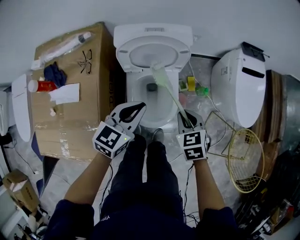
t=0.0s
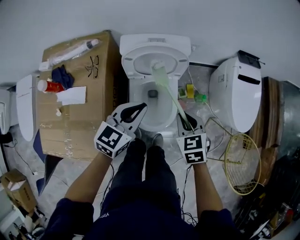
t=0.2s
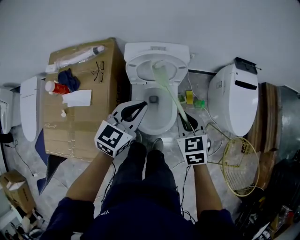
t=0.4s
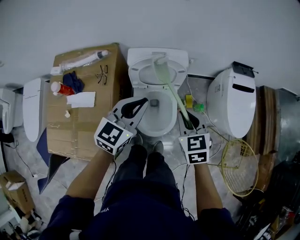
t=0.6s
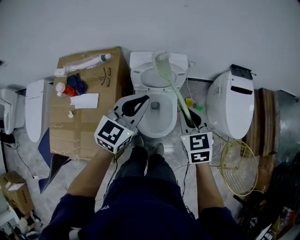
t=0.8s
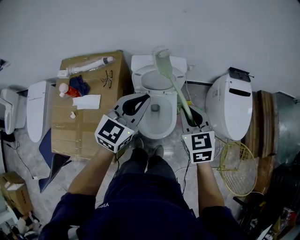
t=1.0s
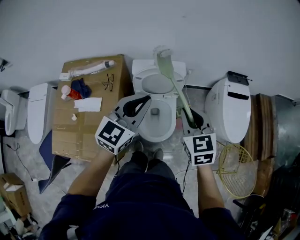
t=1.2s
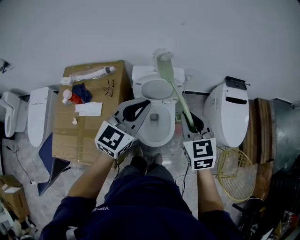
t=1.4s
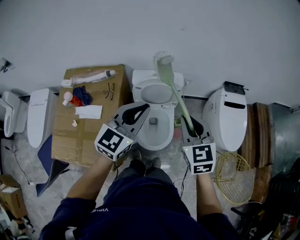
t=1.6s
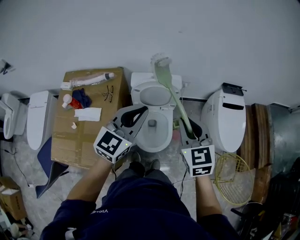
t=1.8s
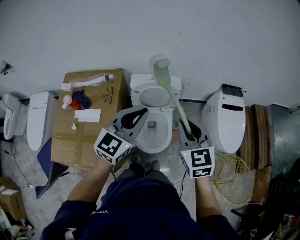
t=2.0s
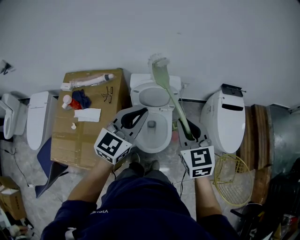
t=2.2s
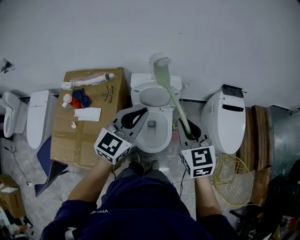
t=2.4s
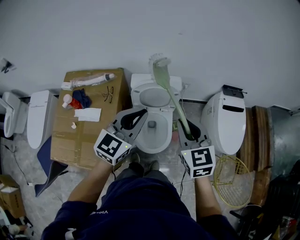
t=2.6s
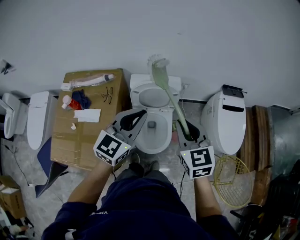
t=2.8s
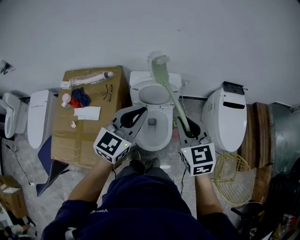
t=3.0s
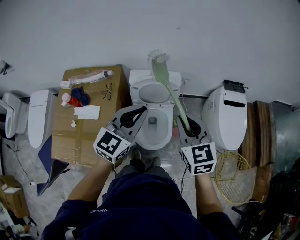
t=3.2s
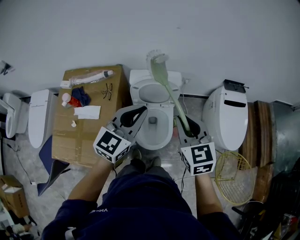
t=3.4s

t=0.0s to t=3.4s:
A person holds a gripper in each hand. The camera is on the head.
t=0.0s to t=1.6s: Both grippers travel together upward, some 30 cm. The right gripper turns by about 30 degrees. The left gripper rotates about 20 degrees.
t=1.6s to t=3.4s: There are only small adjustments of the grippers.

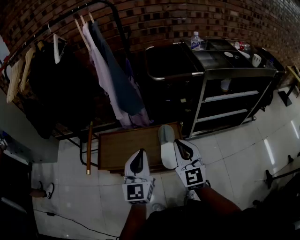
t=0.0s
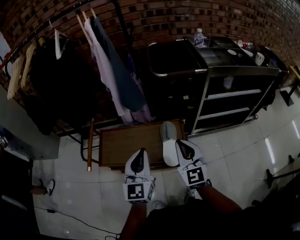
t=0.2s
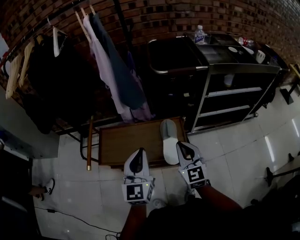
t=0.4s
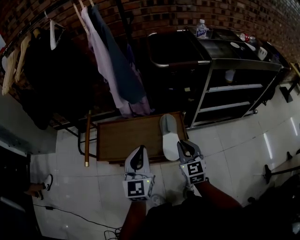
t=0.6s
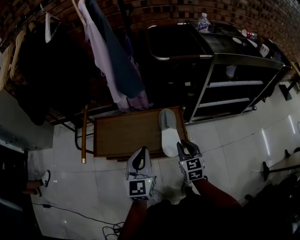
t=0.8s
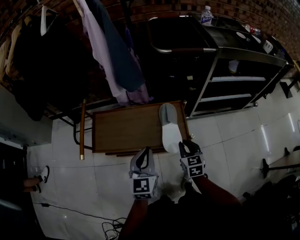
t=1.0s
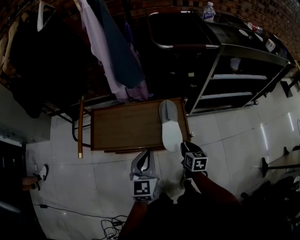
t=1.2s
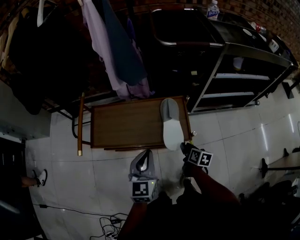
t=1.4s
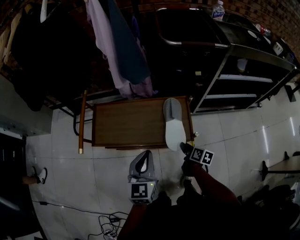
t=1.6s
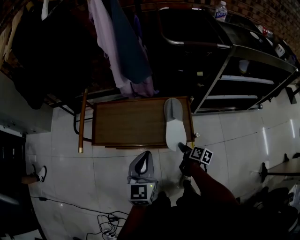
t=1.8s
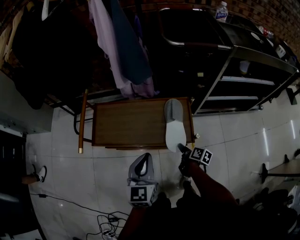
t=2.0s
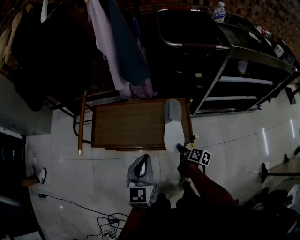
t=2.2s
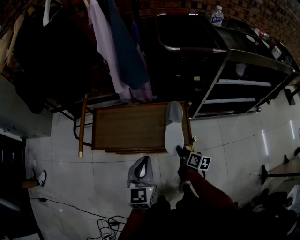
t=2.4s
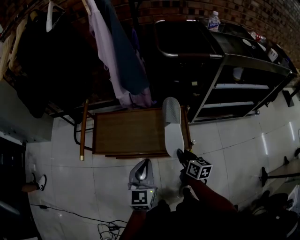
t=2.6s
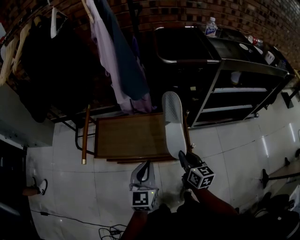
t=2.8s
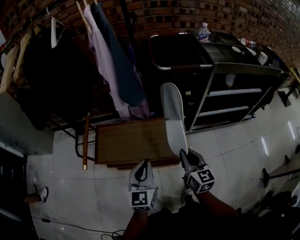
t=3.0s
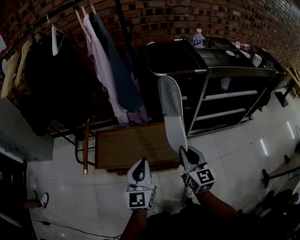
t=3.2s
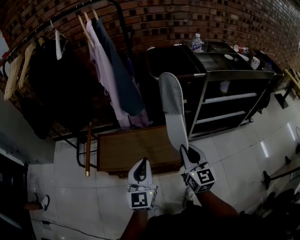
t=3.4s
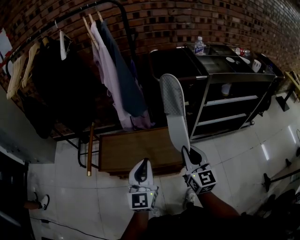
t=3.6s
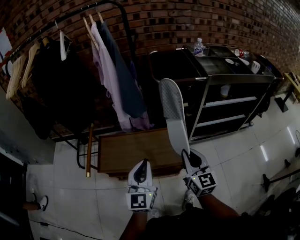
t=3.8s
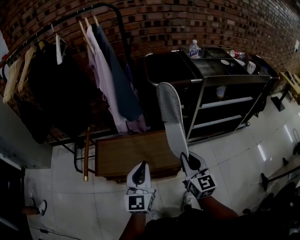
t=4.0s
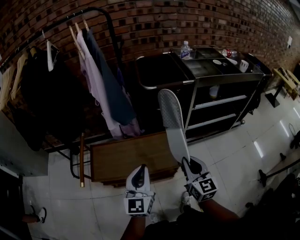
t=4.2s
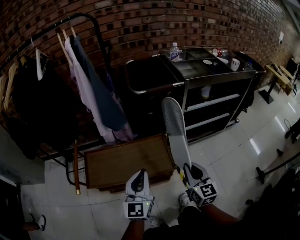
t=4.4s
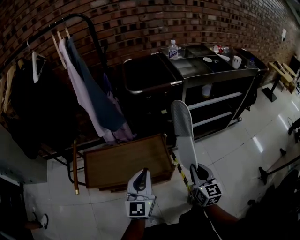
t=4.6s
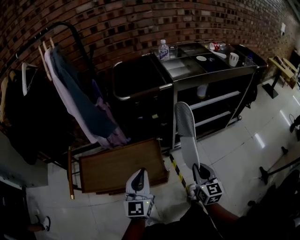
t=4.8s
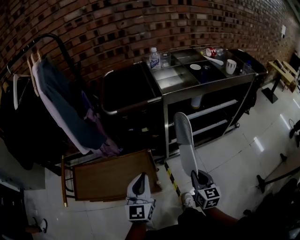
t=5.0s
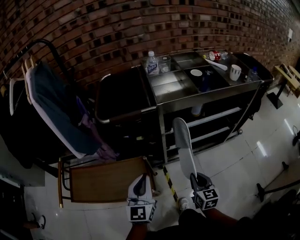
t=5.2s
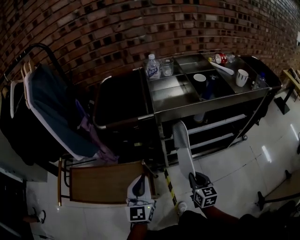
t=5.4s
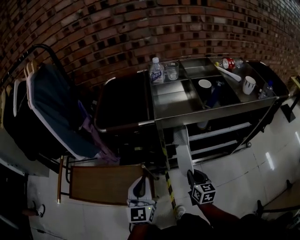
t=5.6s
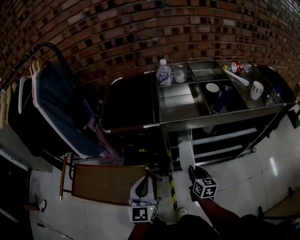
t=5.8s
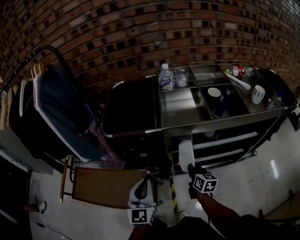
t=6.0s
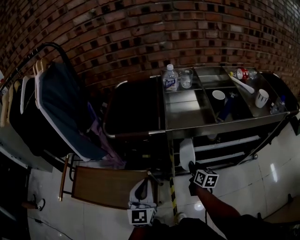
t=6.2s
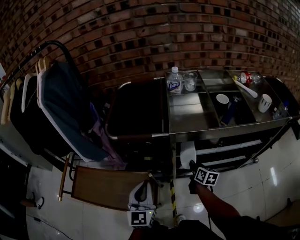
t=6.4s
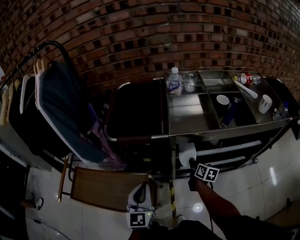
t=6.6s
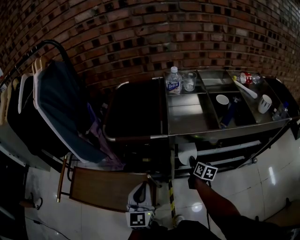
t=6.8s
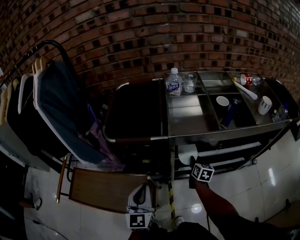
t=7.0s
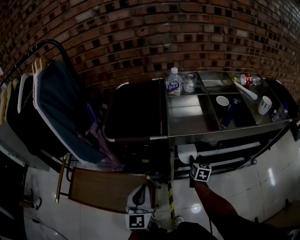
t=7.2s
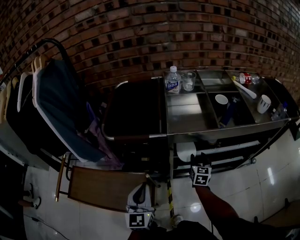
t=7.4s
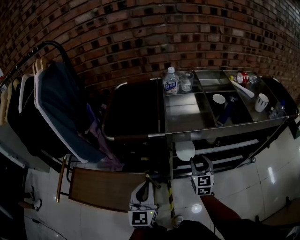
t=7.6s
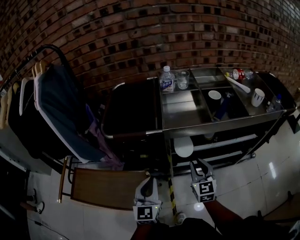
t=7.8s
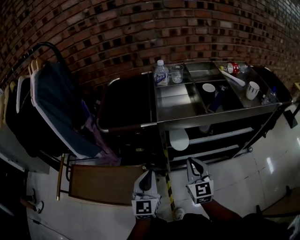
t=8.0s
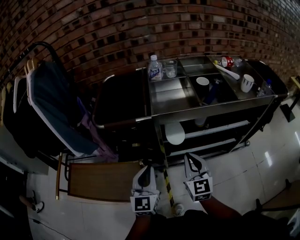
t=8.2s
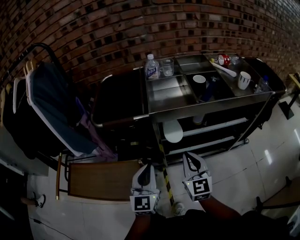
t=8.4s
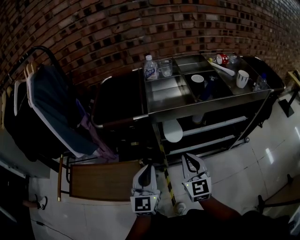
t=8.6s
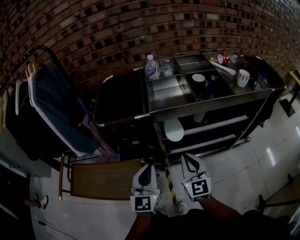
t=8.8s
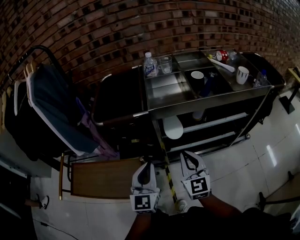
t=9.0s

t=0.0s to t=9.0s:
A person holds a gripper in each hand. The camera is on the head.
t=0.0s to t=1.6s: The right gripper heads downward, covering some 35 cm, twists some 70 degrees clockwise, seen from behind, and opens up. Meanwhile the left gripper moves downward, roughly 15 cm.
t=1.6s to t=3.0s: The right gripper moves upward, some 25 cm, changes its angle by roughly 50 degrees, and closes up.
t=3.0s to t=4.4s: The left gripper shifts about 5 cm upward; the right gripper heads to the right, covering approximately 10 cm.
t=4.4s to t=6.0s: The left gripper is displaced to the right and forward by about 30 cm. The right gripper heads forward and to the right, covering approximately 40 cm, and swivels some 30 degrees.
t=6.0s to t=7.6s: The right gripper is displaced upward by approximately 5 cm, swivels approximately 40 degrees, and opens up.
t=7.6s to t=9.0s: The left gripper shifts roughly 5 cm to the right. Meanwhile the right gripper heads backward and upward, covering about 15 cm, and closes its fingers.

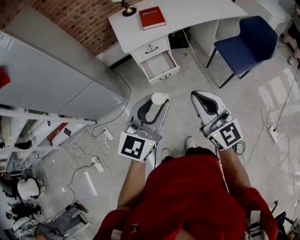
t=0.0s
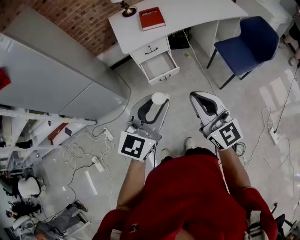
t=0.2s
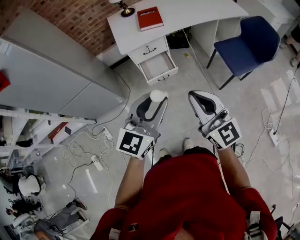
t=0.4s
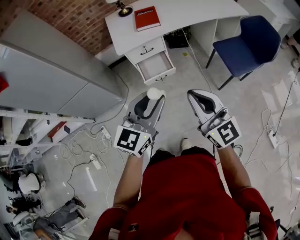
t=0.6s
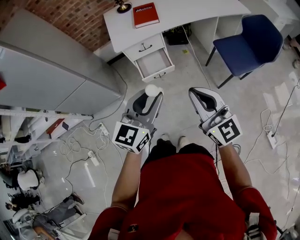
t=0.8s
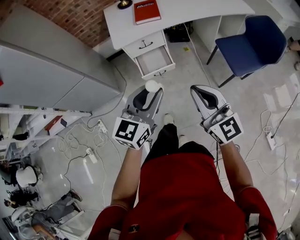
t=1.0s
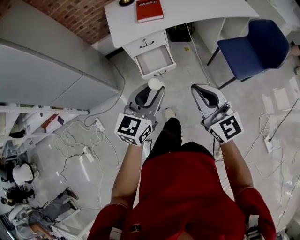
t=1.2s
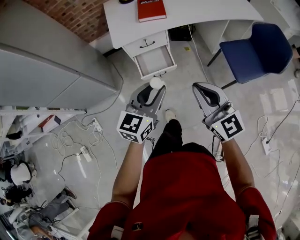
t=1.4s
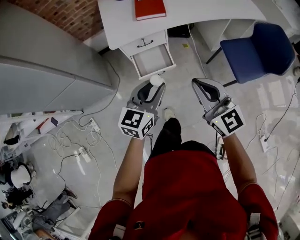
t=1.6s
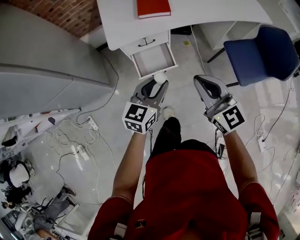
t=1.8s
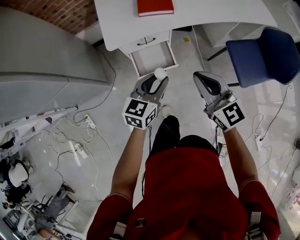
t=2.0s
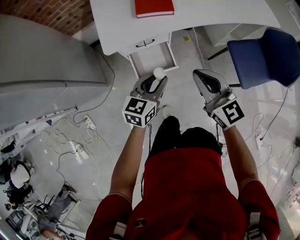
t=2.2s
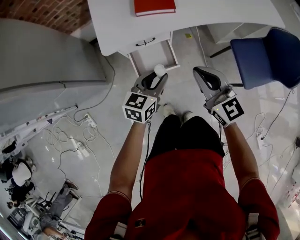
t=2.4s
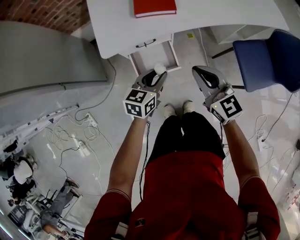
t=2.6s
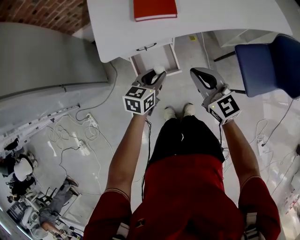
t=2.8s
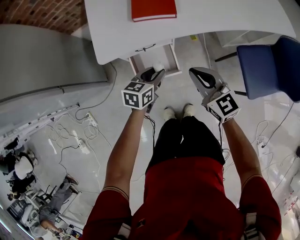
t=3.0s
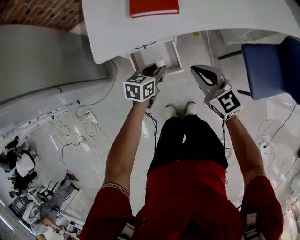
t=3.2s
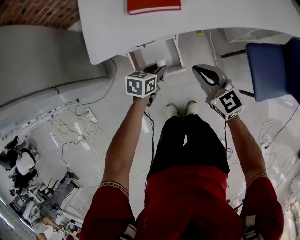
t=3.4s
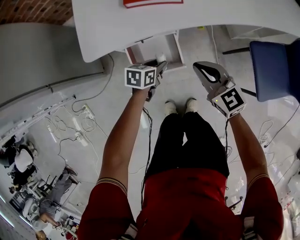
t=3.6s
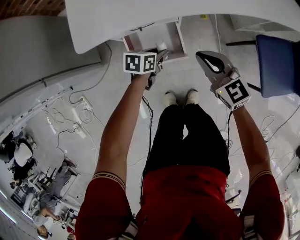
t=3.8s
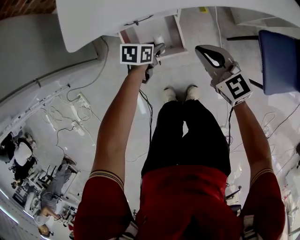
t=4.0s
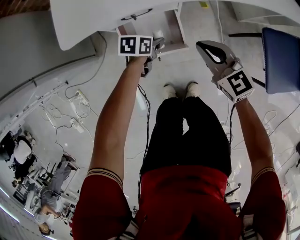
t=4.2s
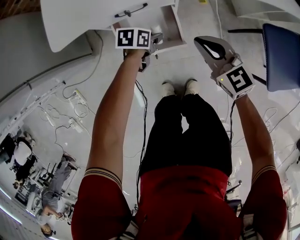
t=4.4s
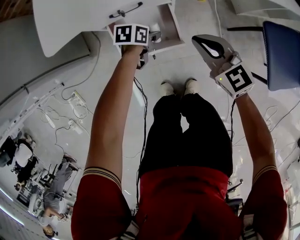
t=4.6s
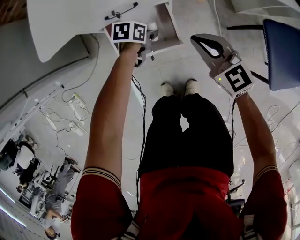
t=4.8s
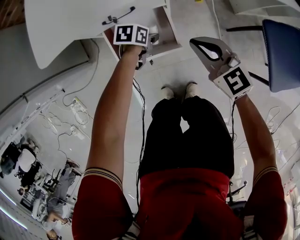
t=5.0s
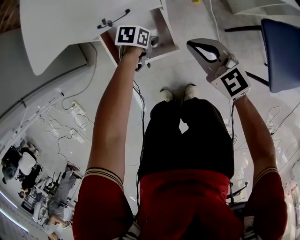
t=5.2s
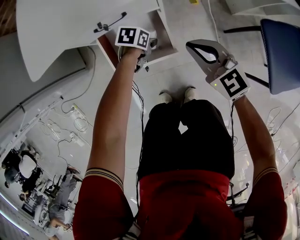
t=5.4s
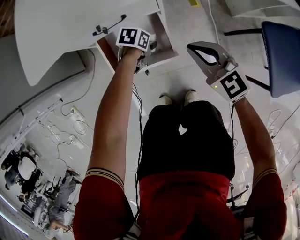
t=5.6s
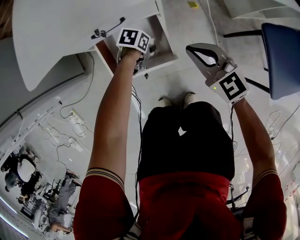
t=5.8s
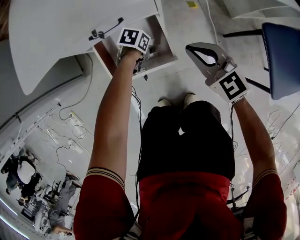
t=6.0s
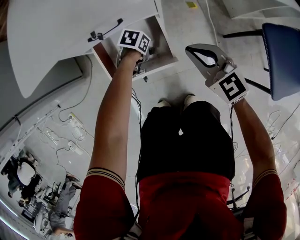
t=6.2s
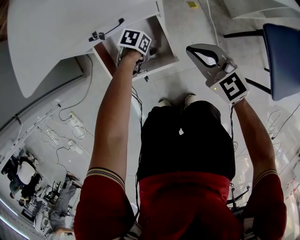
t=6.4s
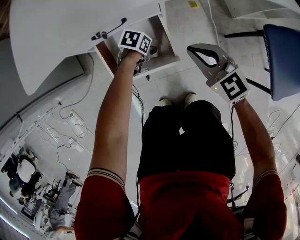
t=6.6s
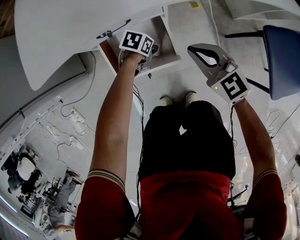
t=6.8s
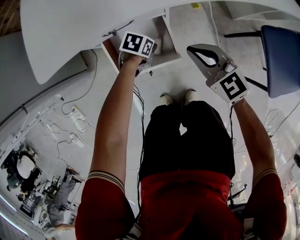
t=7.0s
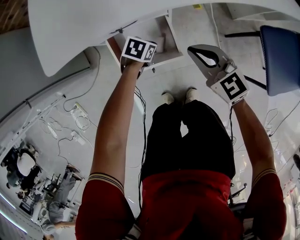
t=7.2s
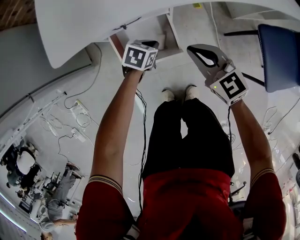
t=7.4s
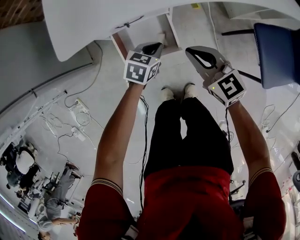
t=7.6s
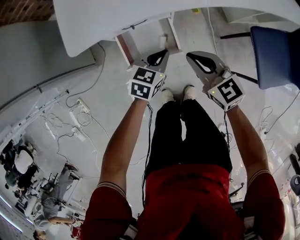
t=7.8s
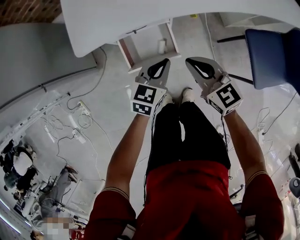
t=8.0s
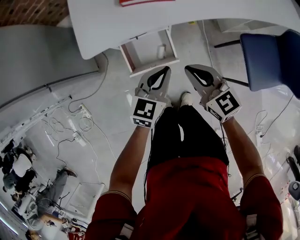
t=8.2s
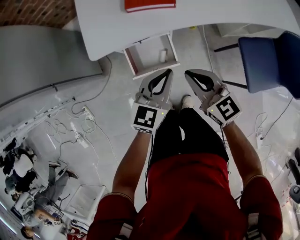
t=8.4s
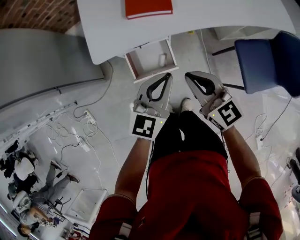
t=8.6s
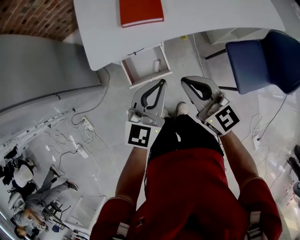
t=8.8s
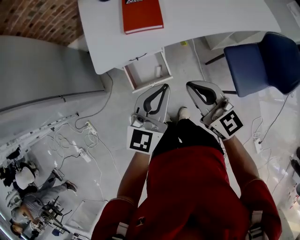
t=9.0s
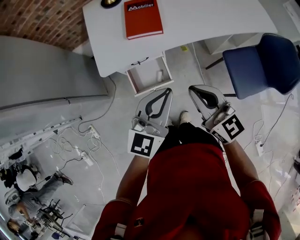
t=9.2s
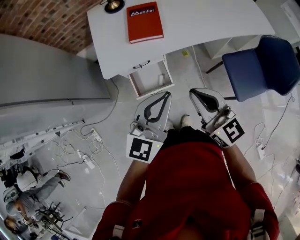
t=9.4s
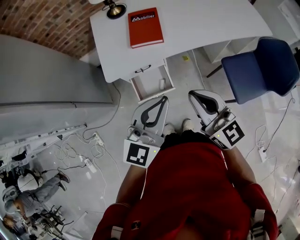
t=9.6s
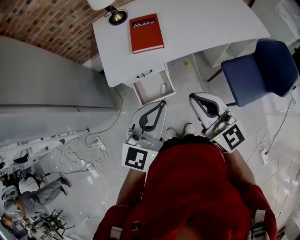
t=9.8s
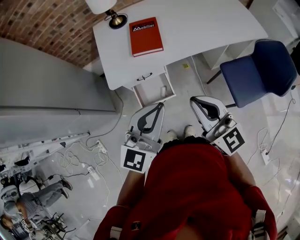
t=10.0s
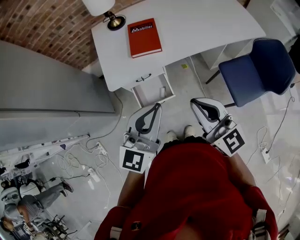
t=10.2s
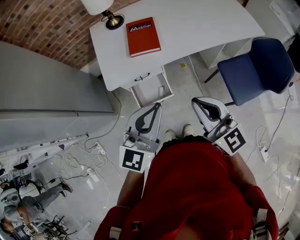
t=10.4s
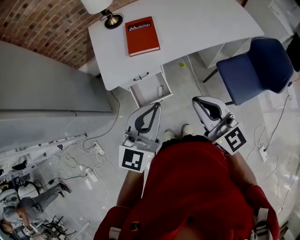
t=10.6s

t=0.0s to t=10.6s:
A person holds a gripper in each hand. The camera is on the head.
t=0.0s to t=1.6s: The grippers both shift forward and downward by approximately 25 cm.
t=1.6s to t=3.0s: Both grippers travel together forward and downward, roughly 30 cm. The left gripper rotates about 30 degrees.
t=3.0s to t=4.6s: Both grippers travel together downward, some 25 cm. The left gripper swivels some 30 degrees.
t=4.6s to t=6.0s: The right gripper heads downward, covering roughly 10 cm. Meanwhile the left gripper goes some 10 cm downward, and changes its angle by about 20 degrees.
t=6.0s to t=7.6s: The left gripper shifts approximately 25 cm upward, changes its angle by about 40 degrees, and closes; the right gripper goes some 10 cm upward.
t=7.6s to t=9.0s: The two grippers go some 35 cm upward. The left gripper points its fingers about 40 degrees further upward.
t=9.0s to t=10.6s: The two grippers go roughly 10 cm upward and backward.
